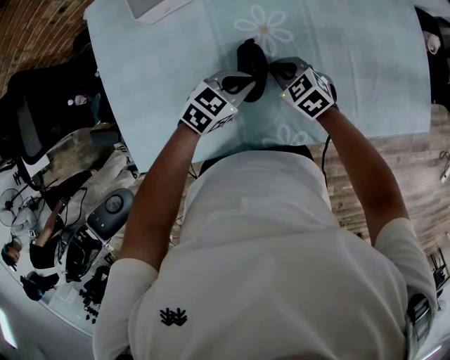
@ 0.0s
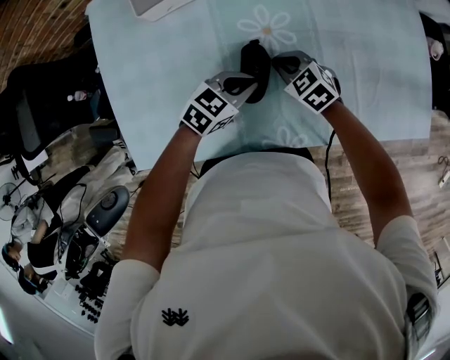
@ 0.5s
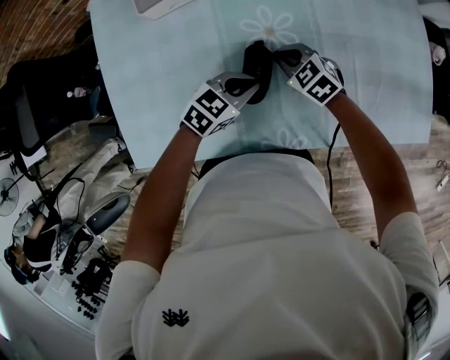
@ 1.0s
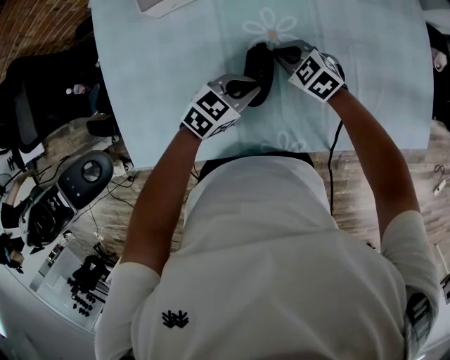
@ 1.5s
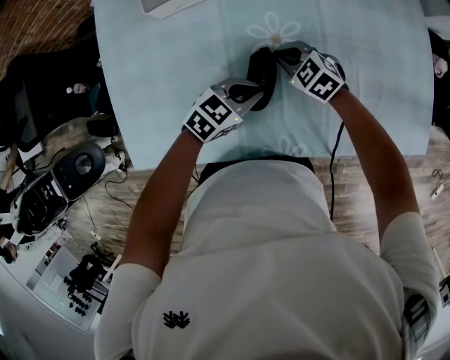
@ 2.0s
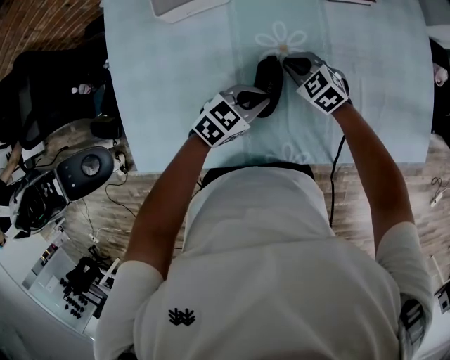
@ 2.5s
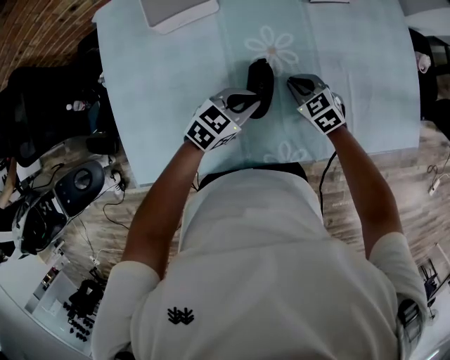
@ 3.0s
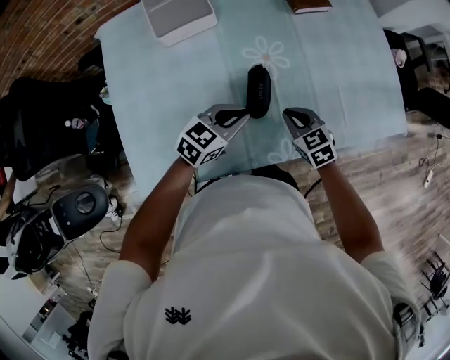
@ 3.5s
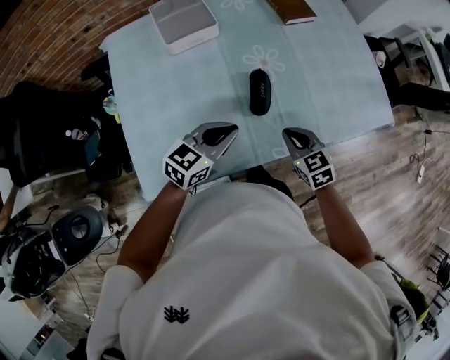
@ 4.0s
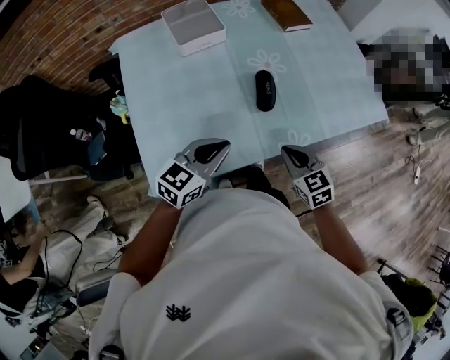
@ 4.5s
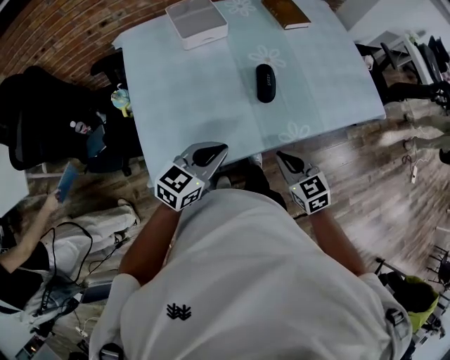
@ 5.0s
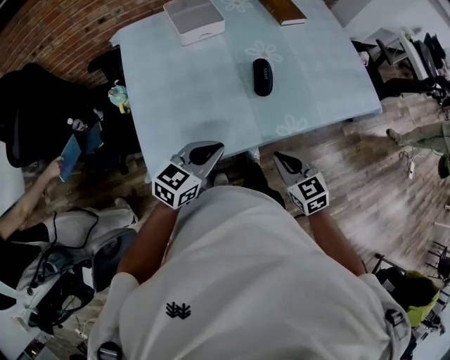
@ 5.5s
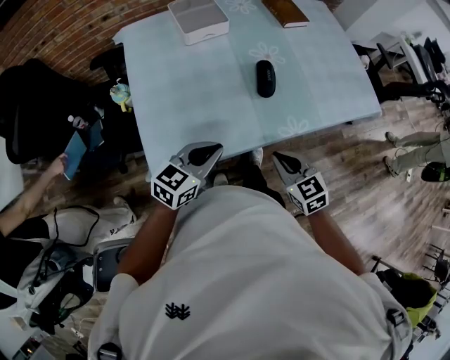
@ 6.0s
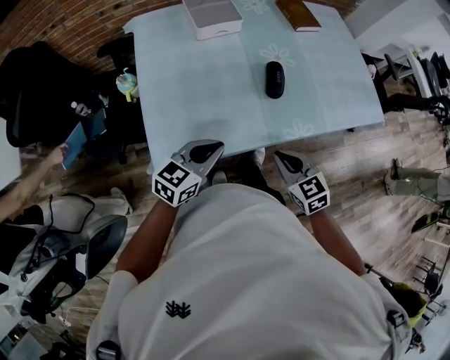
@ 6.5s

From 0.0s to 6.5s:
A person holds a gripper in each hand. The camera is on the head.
From 0.0s to 2.0s: The right gripper shifts by about 5 cm.
From 2.0s to 4.5s: The left gripper changes place by roughly 30 cm, and changes its angle by roughly 20 degrees; the right gripper moves roughly 35 cm, and changes its angle by about 40 degrees.
From 4.5s to 6.5s: Both grippers move backward, about 10 cm.

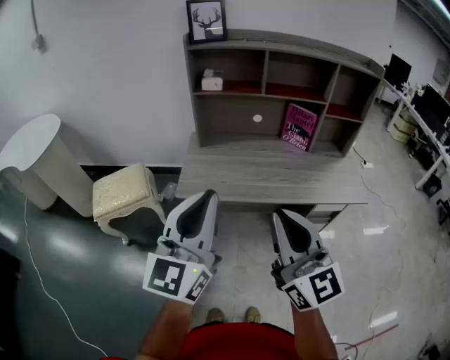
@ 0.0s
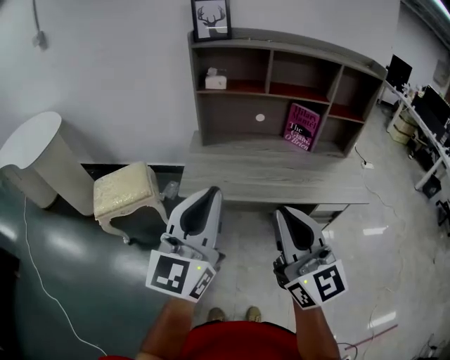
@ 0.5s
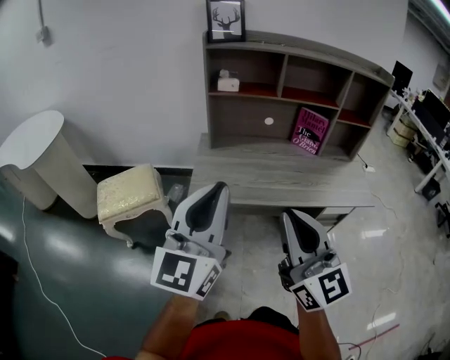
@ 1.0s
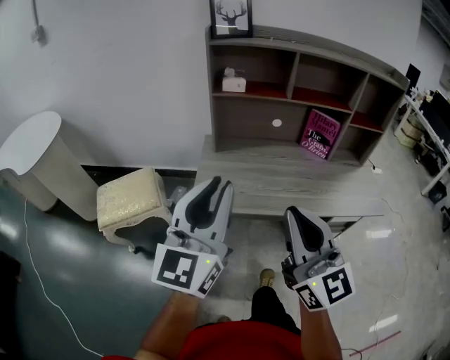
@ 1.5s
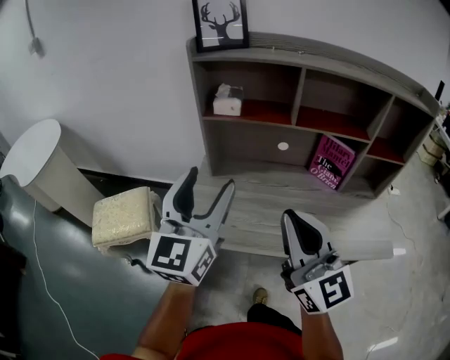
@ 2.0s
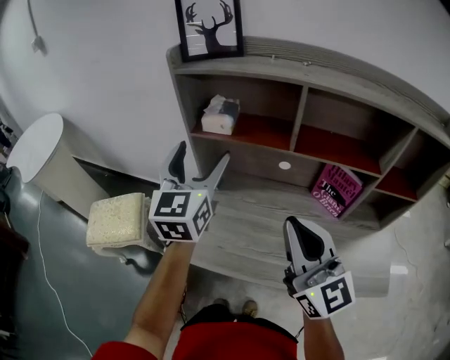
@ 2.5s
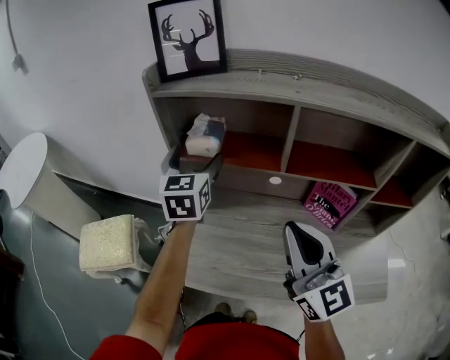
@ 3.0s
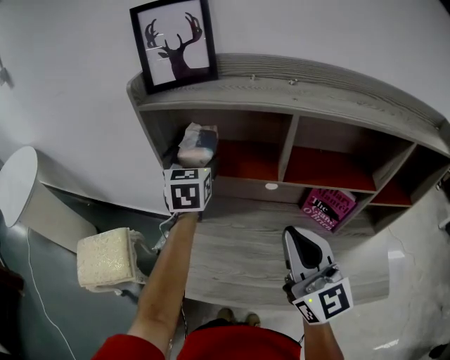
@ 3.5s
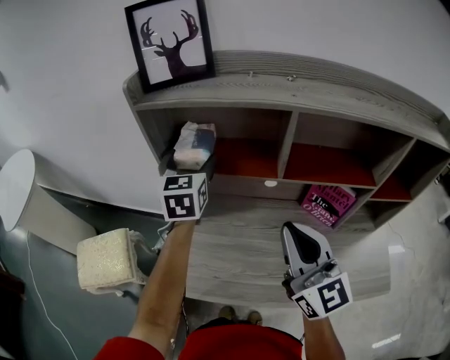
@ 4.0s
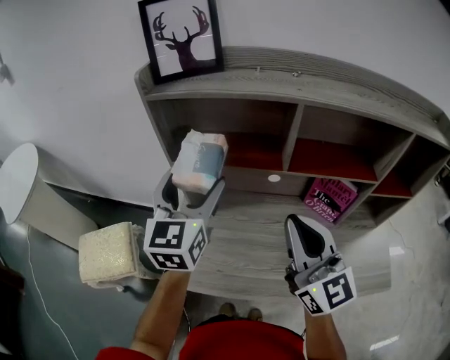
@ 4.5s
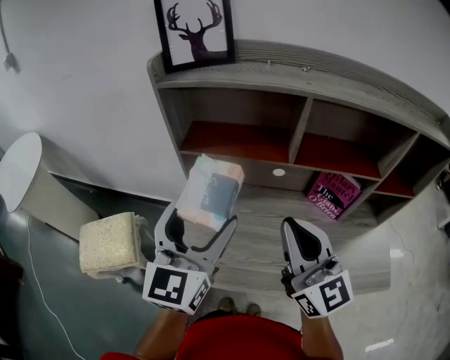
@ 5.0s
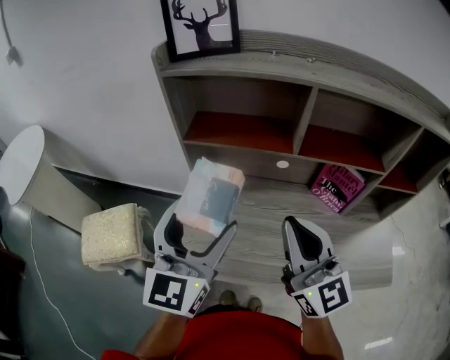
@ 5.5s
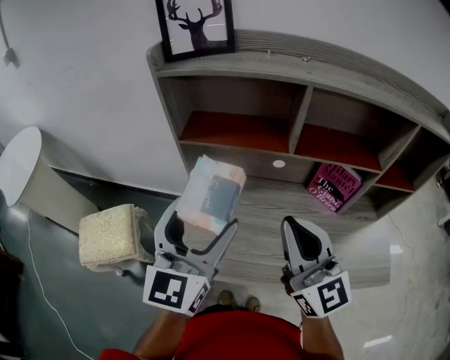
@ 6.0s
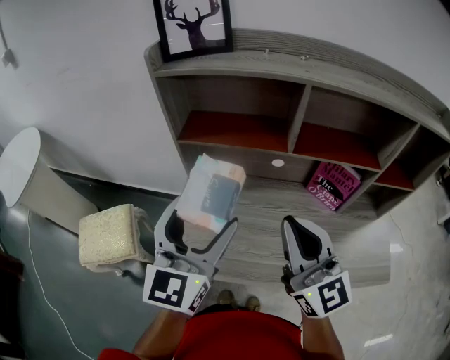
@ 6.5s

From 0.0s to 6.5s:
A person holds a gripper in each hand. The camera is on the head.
From 0.0s to 2.0s: Both grippers move forward, approximately 25 cm. The left gripper opens up.
From 2.0s to 4.5s: The right gripper is displaced forward and to the right by some 20 cm; the left gripper moves forward, some 20 cm.
From 4.5s to 6.5s: The left gripper moves backward, about 10 cm.

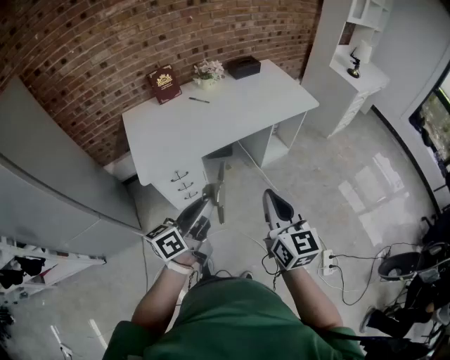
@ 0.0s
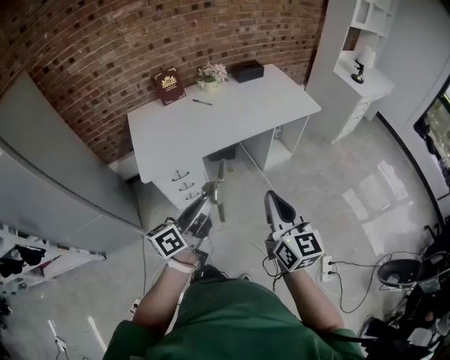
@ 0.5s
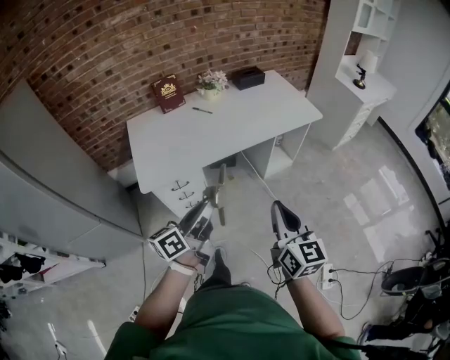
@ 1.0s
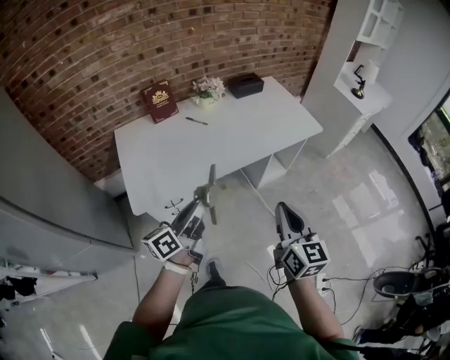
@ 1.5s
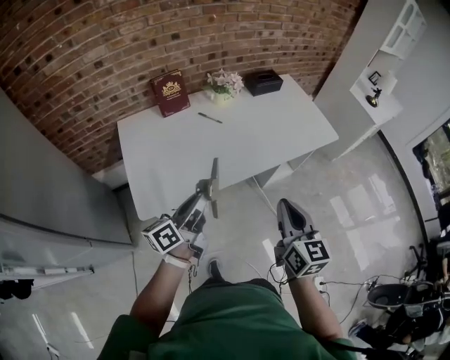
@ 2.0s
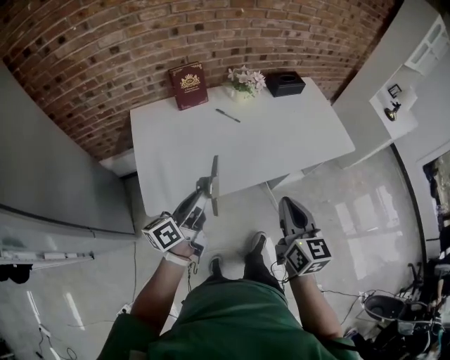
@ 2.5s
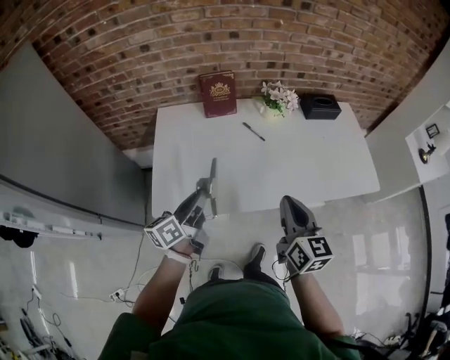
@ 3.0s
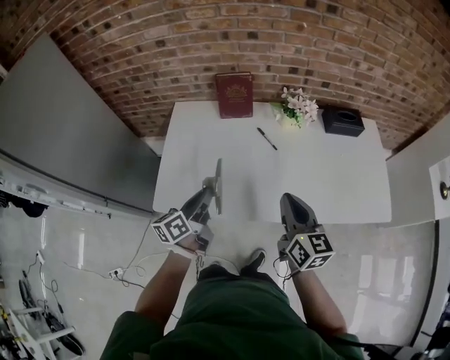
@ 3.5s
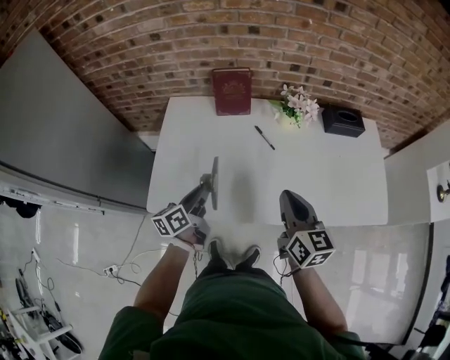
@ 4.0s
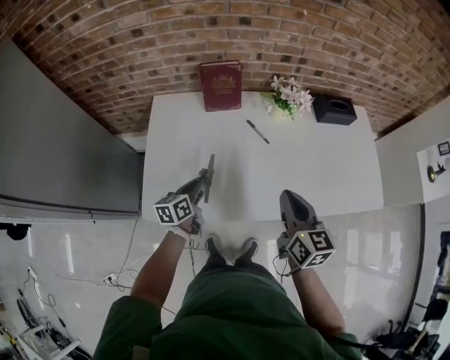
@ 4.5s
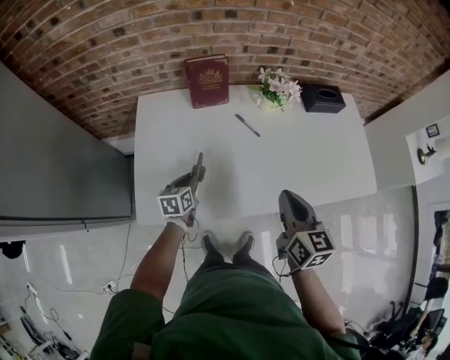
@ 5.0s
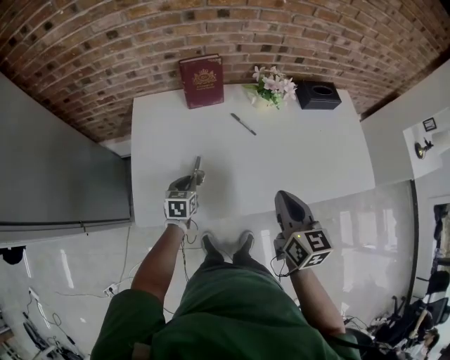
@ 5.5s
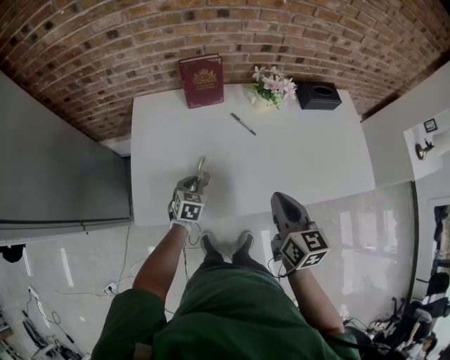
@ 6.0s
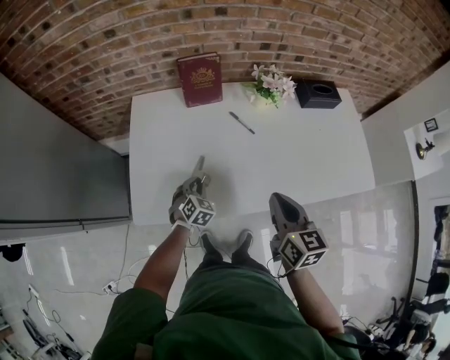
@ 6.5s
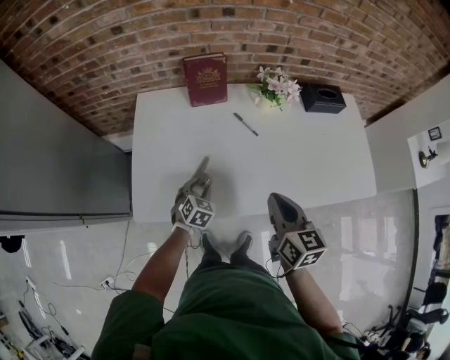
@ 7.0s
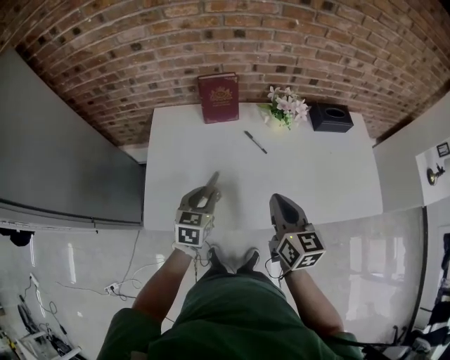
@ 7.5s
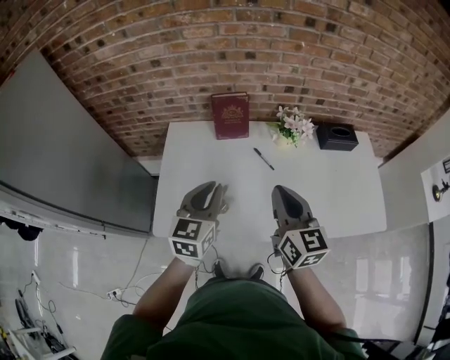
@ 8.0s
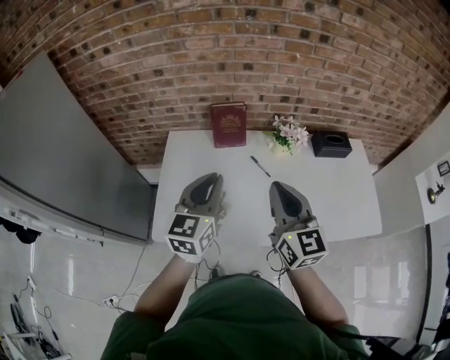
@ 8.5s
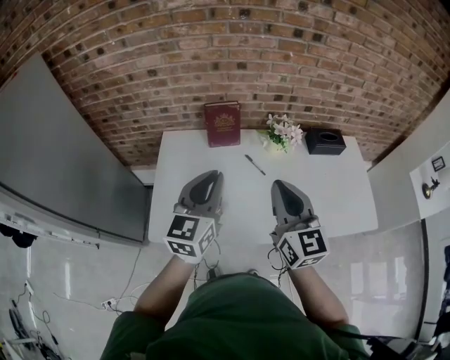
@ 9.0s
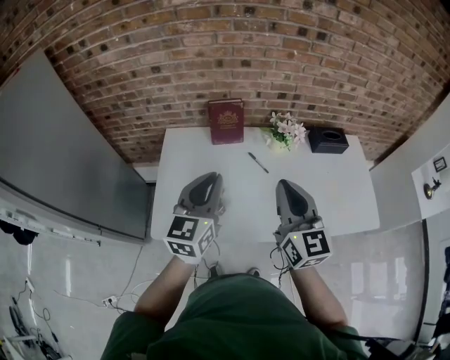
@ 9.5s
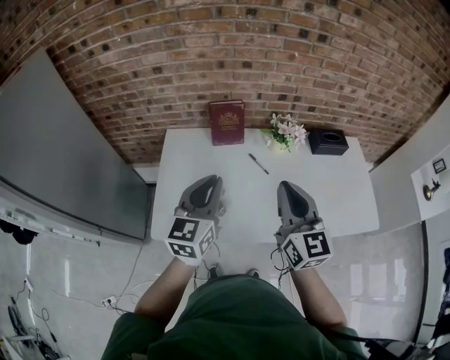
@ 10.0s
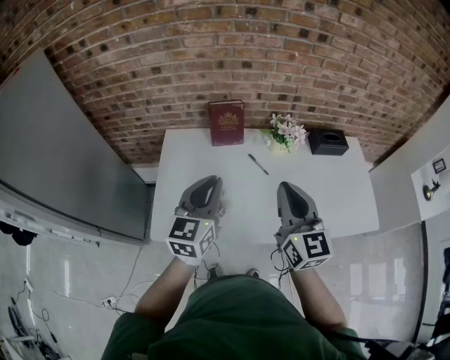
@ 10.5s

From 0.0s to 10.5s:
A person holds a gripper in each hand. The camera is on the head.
From 0.0s to 2.0s: The left gripper is displaced forward and to the left by about 25 cm, while the right gripper is displaced forward by about 20 cm.
From 2.0s to 4.0s: The left gripper moves some 20 cm, and changes its angle by approximately 40 degrees; the right gripper shifts by approximately 30 cm, and turns by some 30 degrees.
From 4.0s to 6.5s: The left gripper goes roughly 15 cm downward, and rolls clockwise, seen from behind, by about 70 degrees.
From 6.5s to 8.5s: The left gripper is displaced upward by some 40 cm, points its fingers some 40 degrees further upward, and opens, then closes once more; the right gripper heads upward, covering approximately 15 cm, and swivels roughly 30 degrees.
From 8.5s to 10.5s: The grippers move only a little.

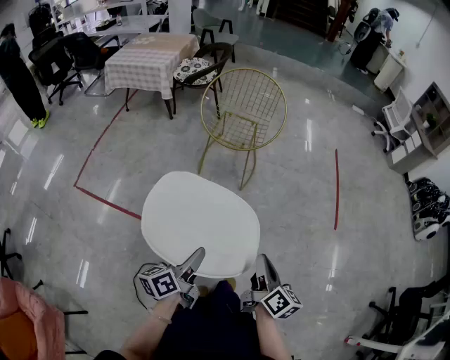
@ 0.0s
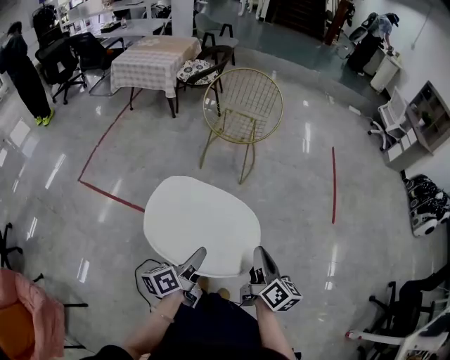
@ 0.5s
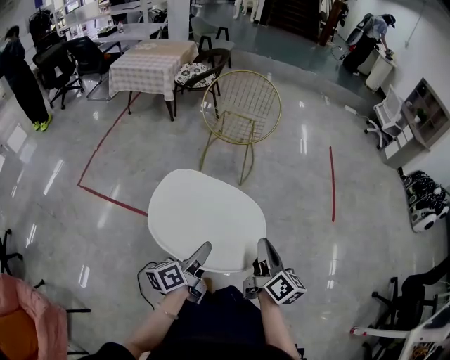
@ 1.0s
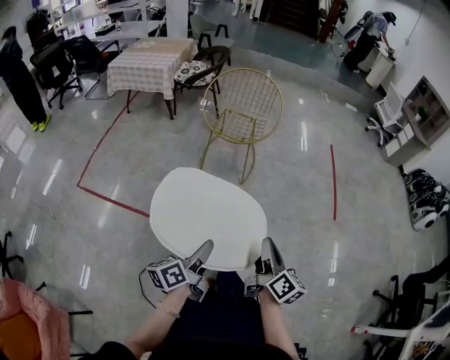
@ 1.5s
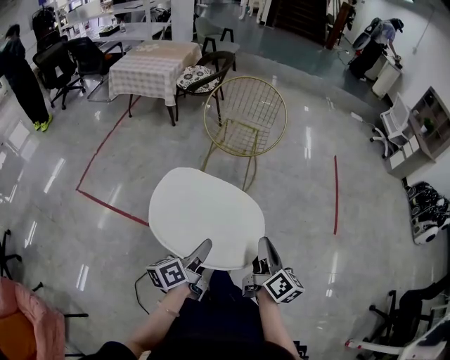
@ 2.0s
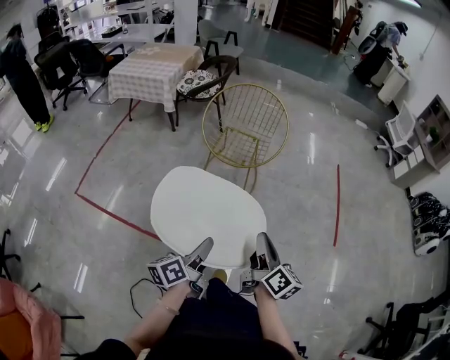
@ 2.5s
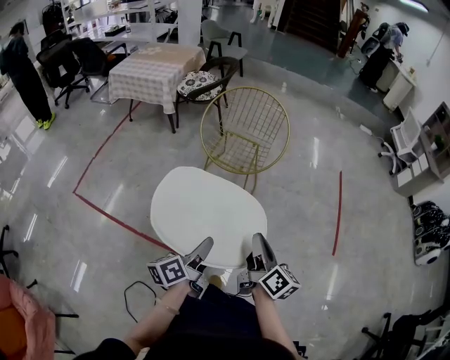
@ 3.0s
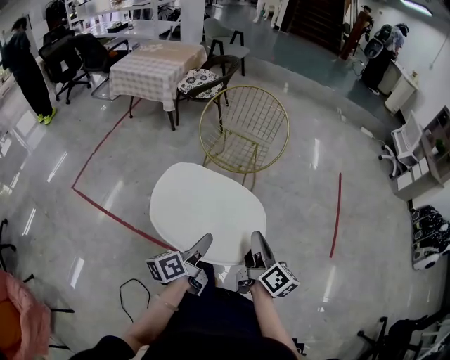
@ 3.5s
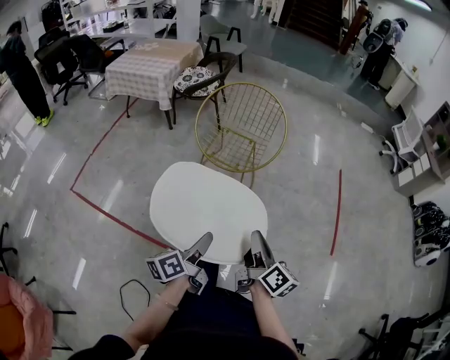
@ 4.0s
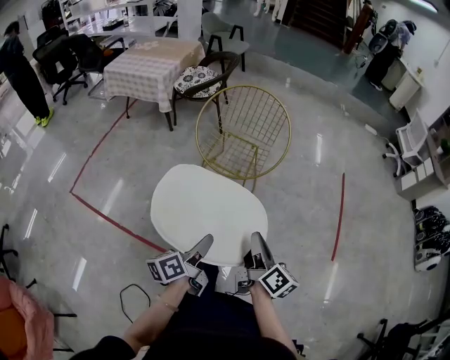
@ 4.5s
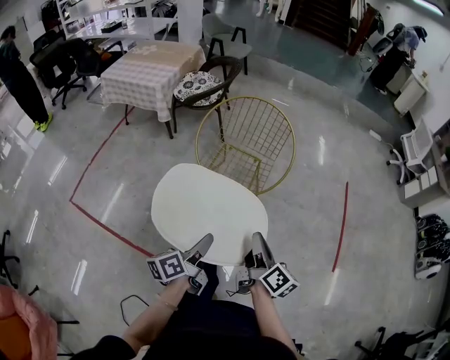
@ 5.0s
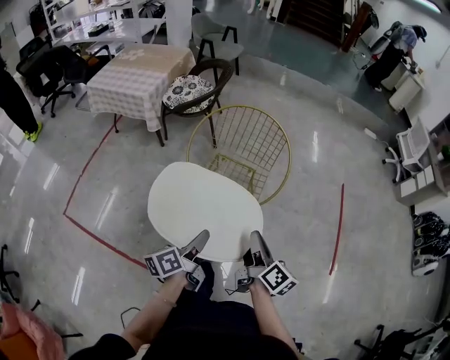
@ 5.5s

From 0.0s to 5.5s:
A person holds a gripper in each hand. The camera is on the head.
From 0.0s to 2.0s: The right gripper ends up about 5 cm from where it was. Meanwhile the left gripper travels backward and back again, approximately 10 cm each way.
From 2.0s to 3.5s: The two grippers go roughly 15 cm forward.
From 3.5s to 5.5s: Both grippers travel together forward, some 25 cm.
